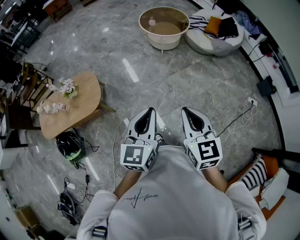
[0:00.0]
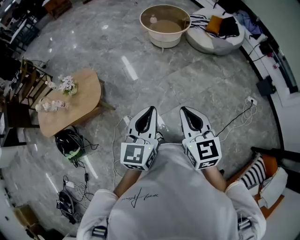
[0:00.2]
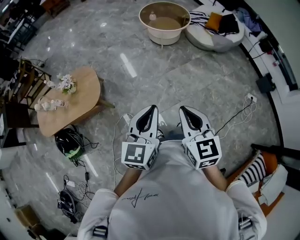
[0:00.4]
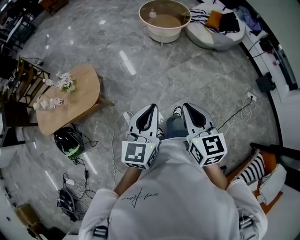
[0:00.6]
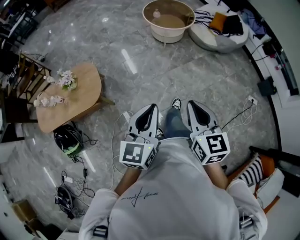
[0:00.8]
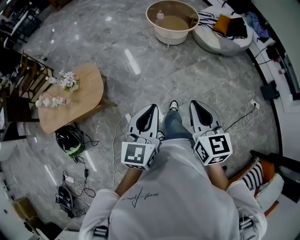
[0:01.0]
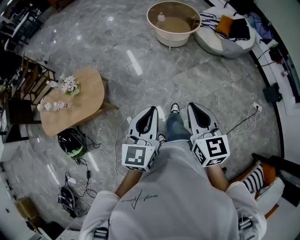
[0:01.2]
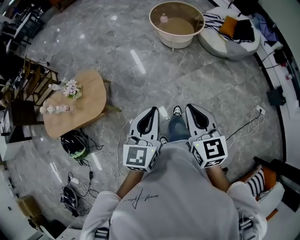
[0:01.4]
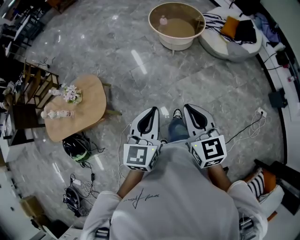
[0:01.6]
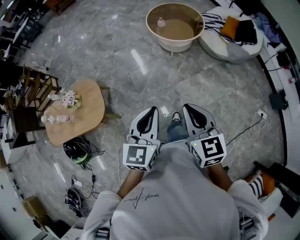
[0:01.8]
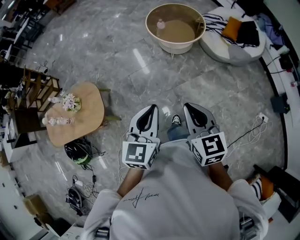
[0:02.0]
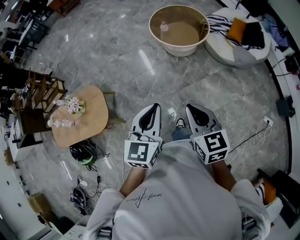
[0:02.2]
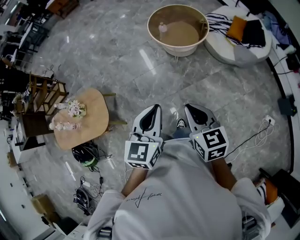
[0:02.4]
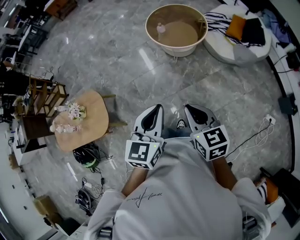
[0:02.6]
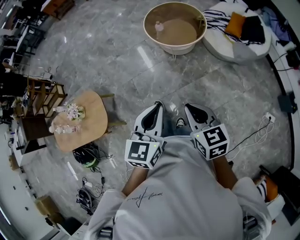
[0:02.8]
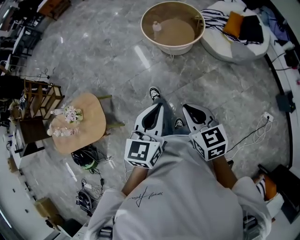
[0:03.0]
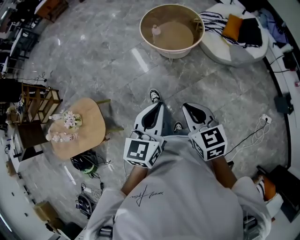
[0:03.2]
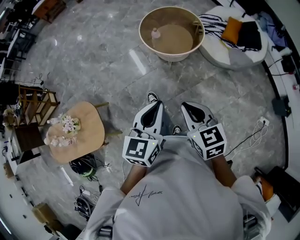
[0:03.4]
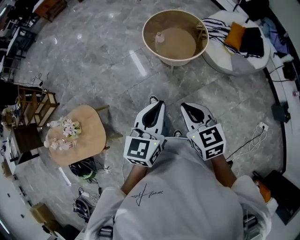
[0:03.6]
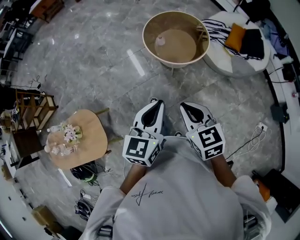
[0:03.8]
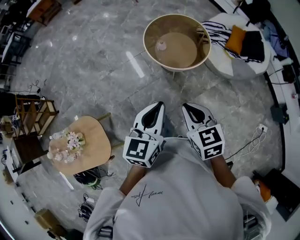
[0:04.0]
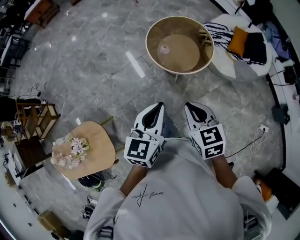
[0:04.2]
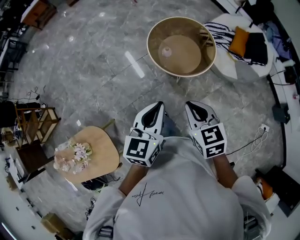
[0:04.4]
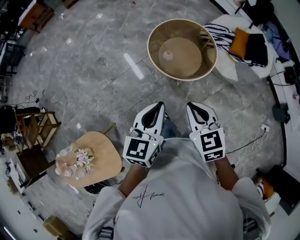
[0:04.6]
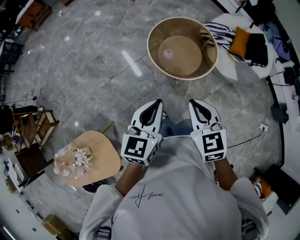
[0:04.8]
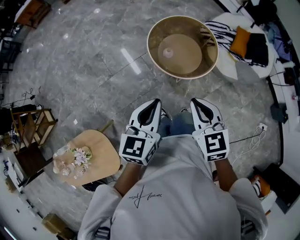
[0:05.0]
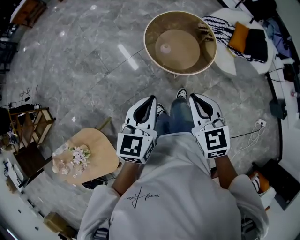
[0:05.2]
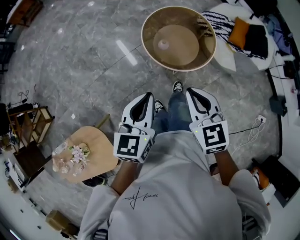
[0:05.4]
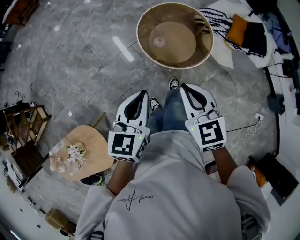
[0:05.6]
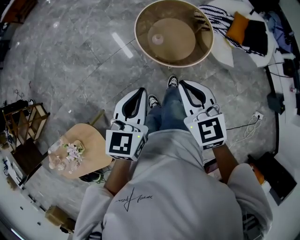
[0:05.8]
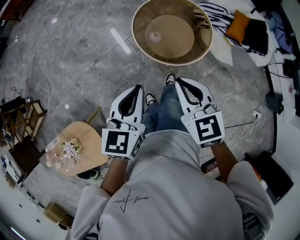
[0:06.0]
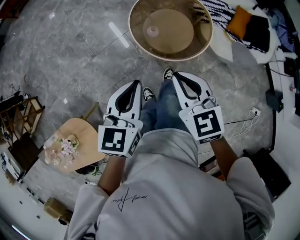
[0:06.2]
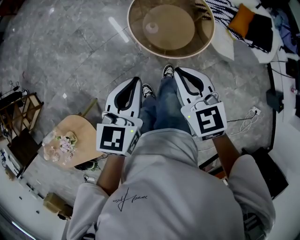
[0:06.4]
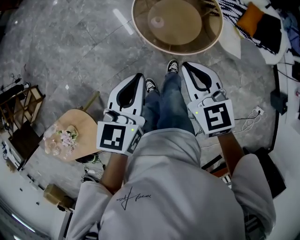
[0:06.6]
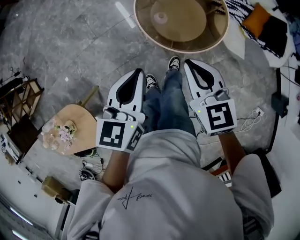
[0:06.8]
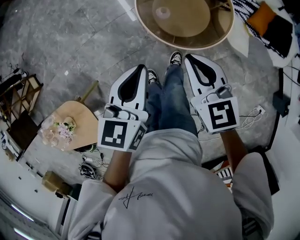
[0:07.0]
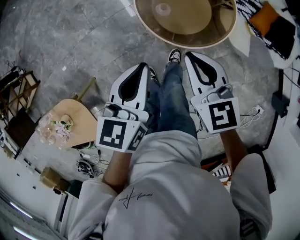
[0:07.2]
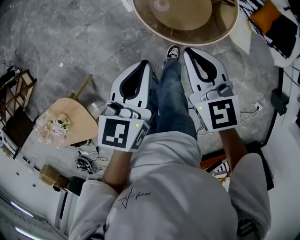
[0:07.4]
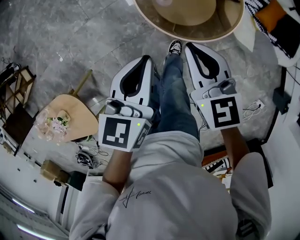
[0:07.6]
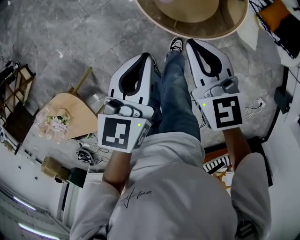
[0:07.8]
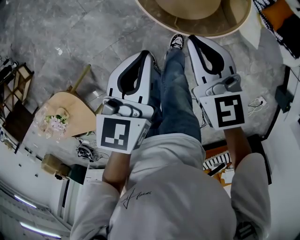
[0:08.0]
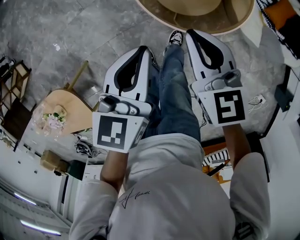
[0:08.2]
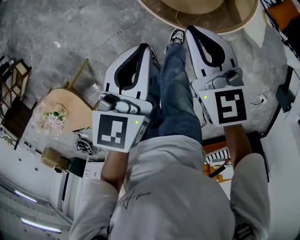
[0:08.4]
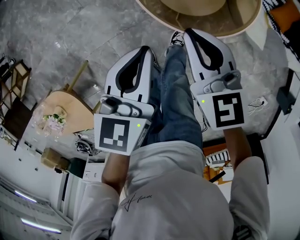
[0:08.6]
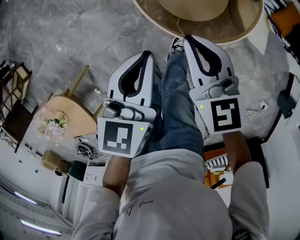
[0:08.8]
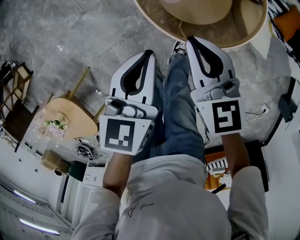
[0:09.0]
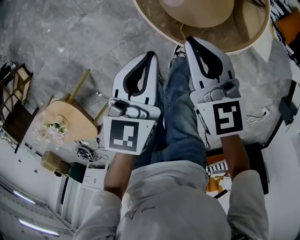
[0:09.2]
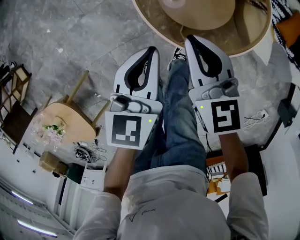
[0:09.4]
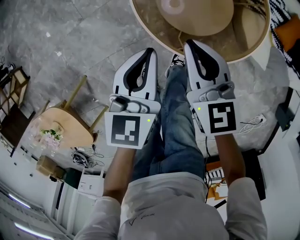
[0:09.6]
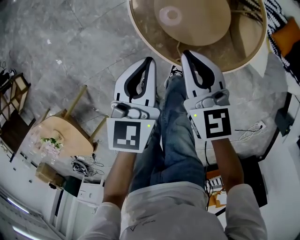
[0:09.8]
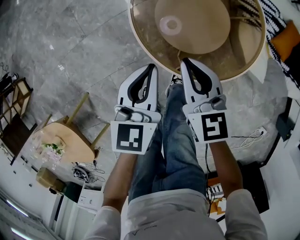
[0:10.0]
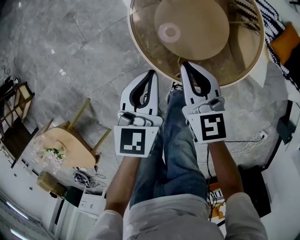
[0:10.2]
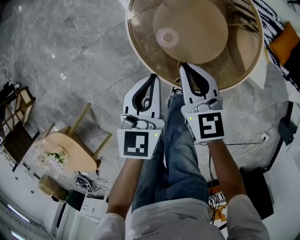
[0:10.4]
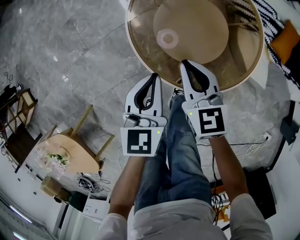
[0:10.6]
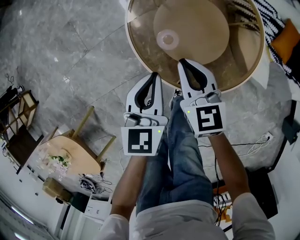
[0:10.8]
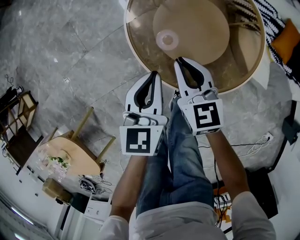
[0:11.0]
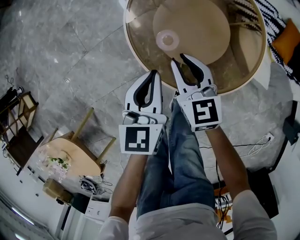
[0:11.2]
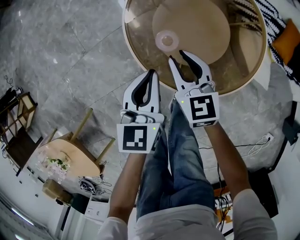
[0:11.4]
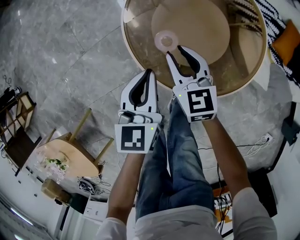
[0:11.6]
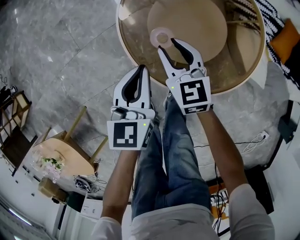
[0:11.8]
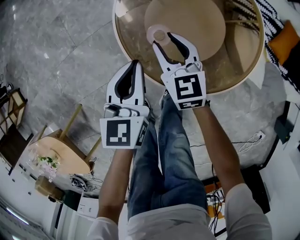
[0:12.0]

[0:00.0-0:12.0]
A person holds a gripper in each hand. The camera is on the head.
0:00.0 to 0:01.6: Both grippers move forward, some 20 cm.
0:01.6 to 0:03.0: Both grippers move forward and to the right, some 20 cm.
0:03.0 to 0:04.4: Both grippers move forward, about 30 cm.
0:04.4 to 0:06.0: Both grippers travel together forward, approximately 10 cm.
0:06.0 to 0:07.6: Both grippers travel together downward and forward, roughly 15 cm.
0:07.6 to 0:09.0: The left gripper travels downward by approximately 10 cm, while the right gripper heads downward and forward, covering roughly 10 cm.
0:09.0 to 0:10.4: The grippers both shift downward by roughly 10 cm.
0:10.4 to 0:12.0: The left gripper changes place by about 5 cm; the right gripper moves downward and forward, some 10 cm, and opens its fingers.

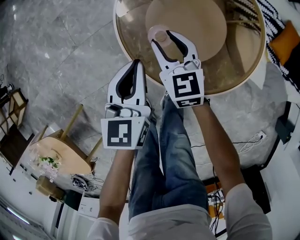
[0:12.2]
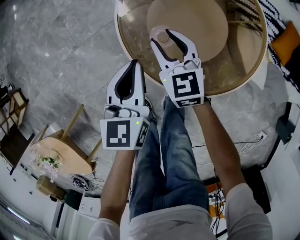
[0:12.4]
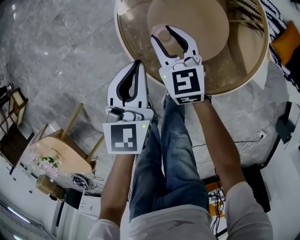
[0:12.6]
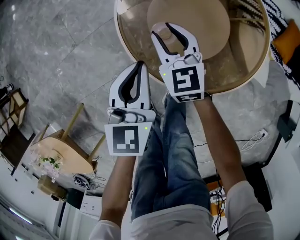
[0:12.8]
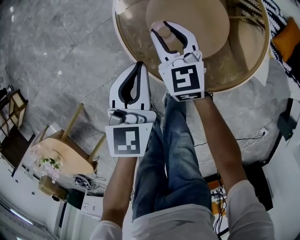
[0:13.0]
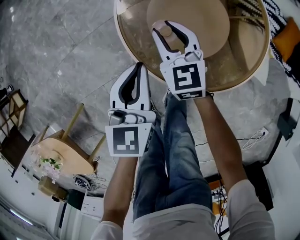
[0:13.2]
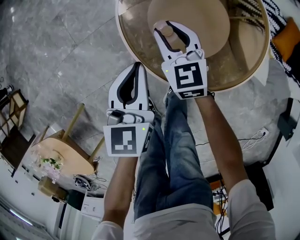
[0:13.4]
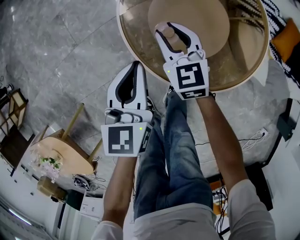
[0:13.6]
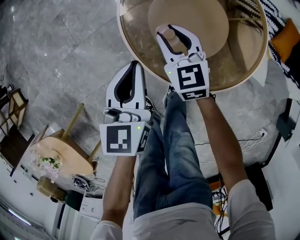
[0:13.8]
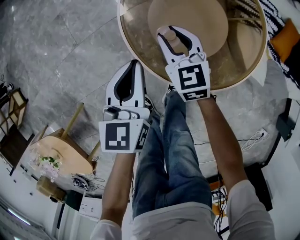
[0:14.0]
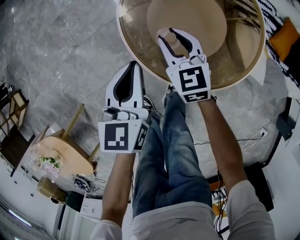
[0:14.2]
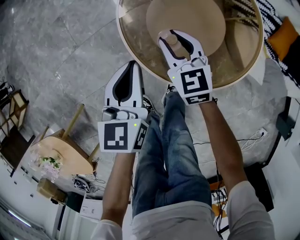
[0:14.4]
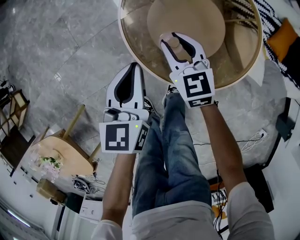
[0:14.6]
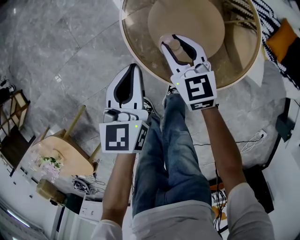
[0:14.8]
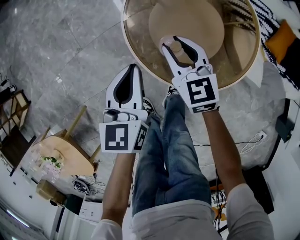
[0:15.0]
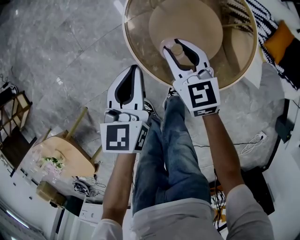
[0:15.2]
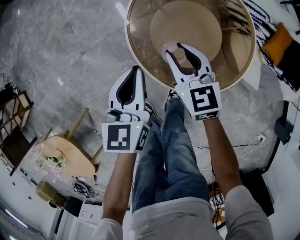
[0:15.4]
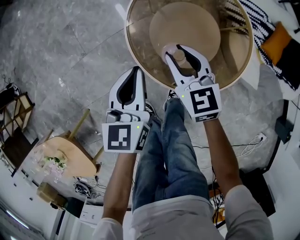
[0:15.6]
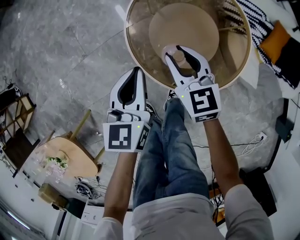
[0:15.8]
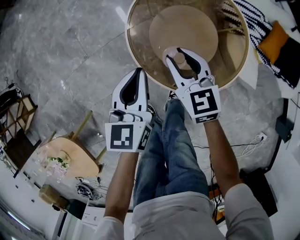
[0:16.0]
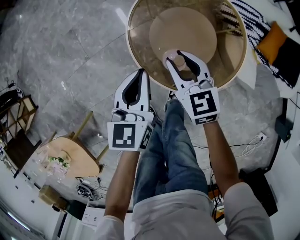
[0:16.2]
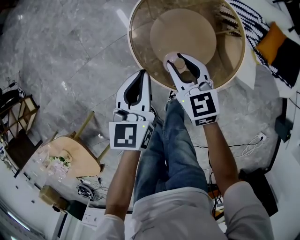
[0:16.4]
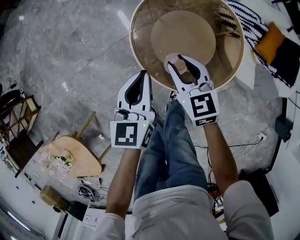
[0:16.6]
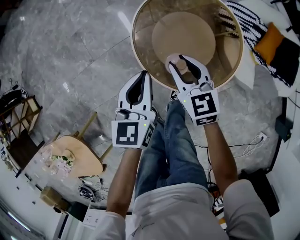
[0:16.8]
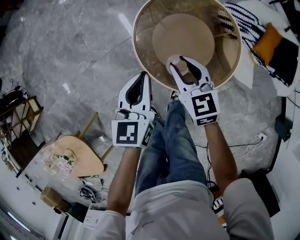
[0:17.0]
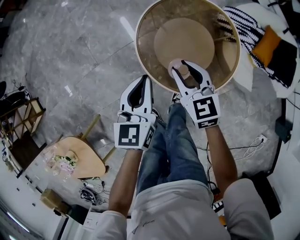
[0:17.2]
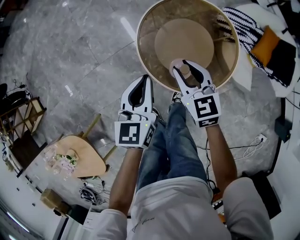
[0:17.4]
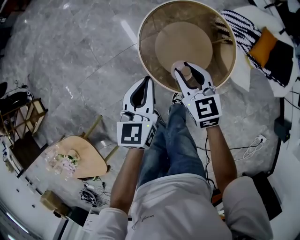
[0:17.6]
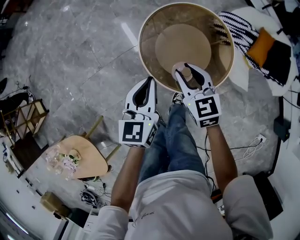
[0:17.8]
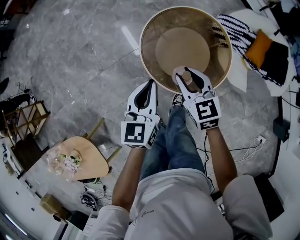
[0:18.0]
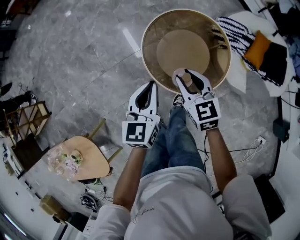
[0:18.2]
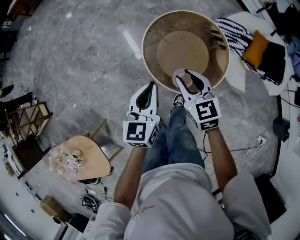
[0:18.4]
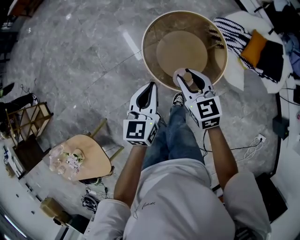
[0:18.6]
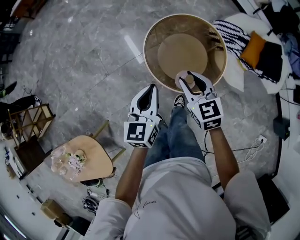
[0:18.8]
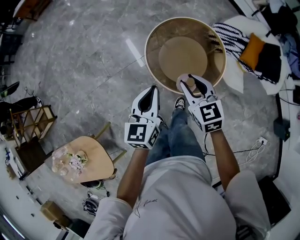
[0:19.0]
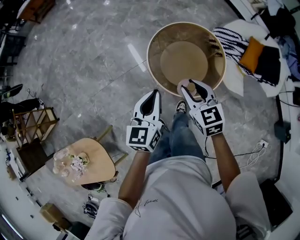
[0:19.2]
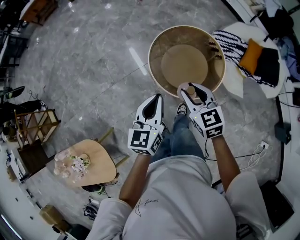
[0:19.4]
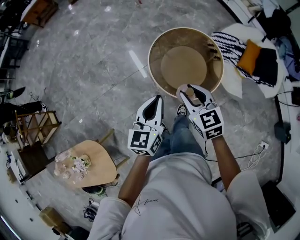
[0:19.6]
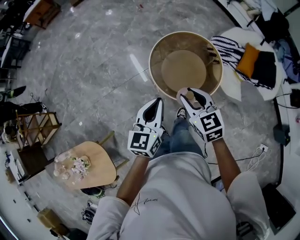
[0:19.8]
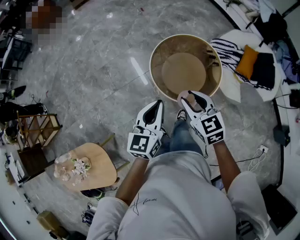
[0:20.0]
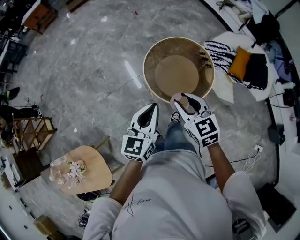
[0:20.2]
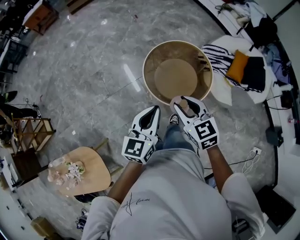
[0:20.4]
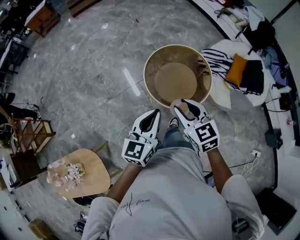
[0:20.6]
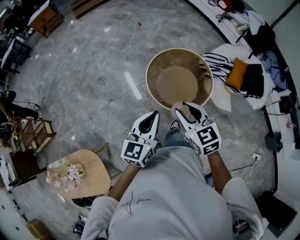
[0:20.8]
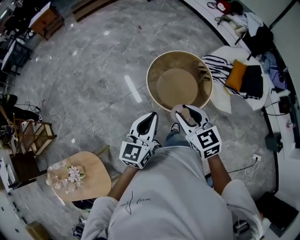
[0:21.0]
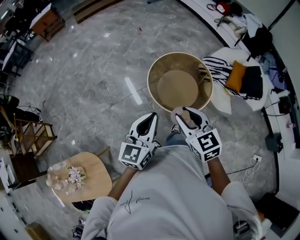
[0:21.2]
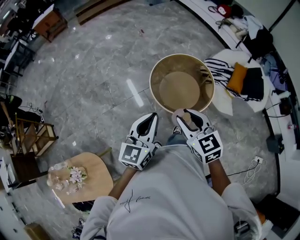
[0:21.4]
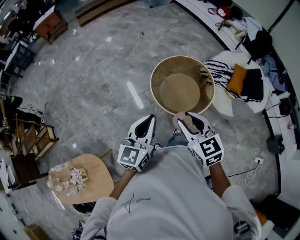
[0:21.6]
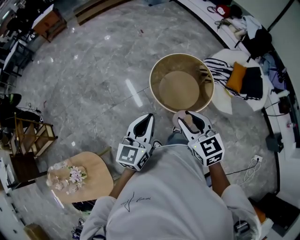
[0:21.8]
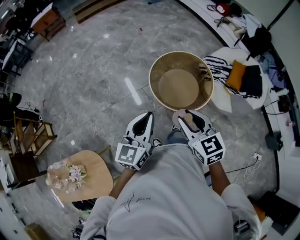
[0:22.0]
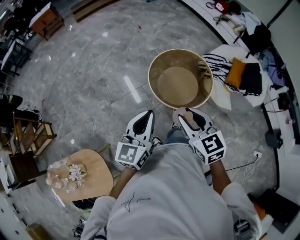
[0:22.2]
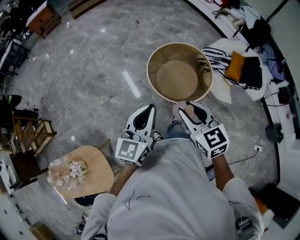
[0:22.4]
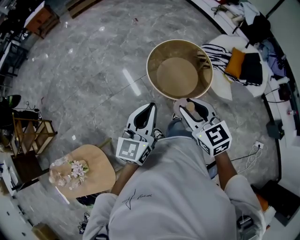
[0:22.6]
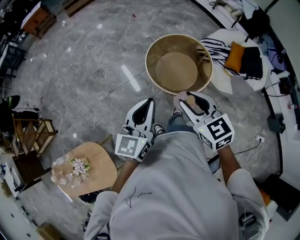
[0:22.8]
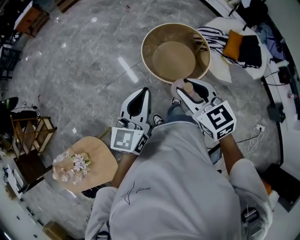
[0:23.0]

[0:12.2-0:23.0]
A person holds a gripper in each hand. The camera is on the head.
0:12.2 to 0:13.8: The grippers stay close to where they were, moving slightly.
0:13.8 to 0:15.2: The right gripper moves upward, about 10 cm.
0:15.2 to 0:16.8: The grippers both shift upward by some 10 cm.
0:16.8 to 0:18.4: Both grippers travel together upward, approximately 10 cm.
0:18.4 to 0:20.0: The grippers both shift upward and backward by approximately 15 cm.
0:20.0 to 0:21.4: The left gripper travels upward and backward by roughly 10 cm. Meanwhile the right gripper is displaced backward and upward by approximately 10 cm.
0:21.4 to 0:23.0: There are only small adjustments of the grippers.

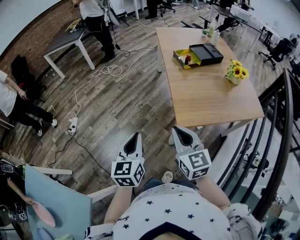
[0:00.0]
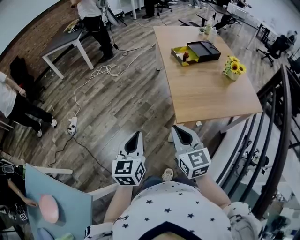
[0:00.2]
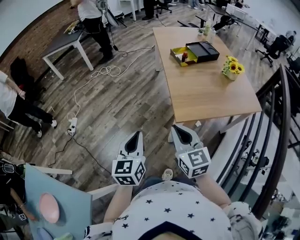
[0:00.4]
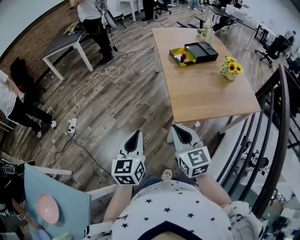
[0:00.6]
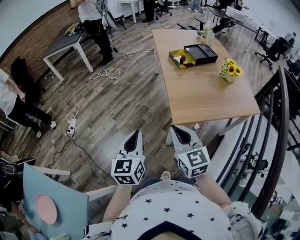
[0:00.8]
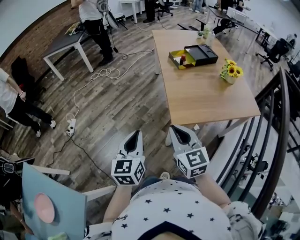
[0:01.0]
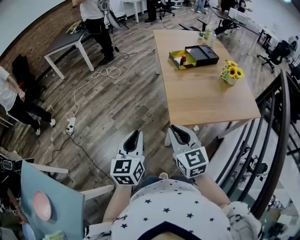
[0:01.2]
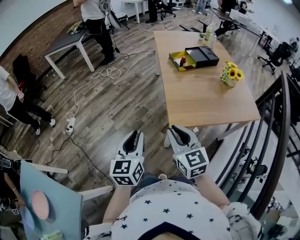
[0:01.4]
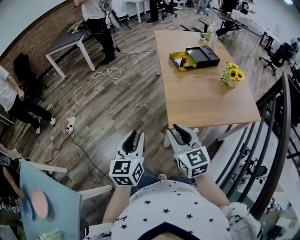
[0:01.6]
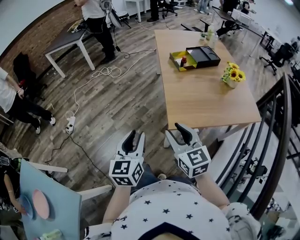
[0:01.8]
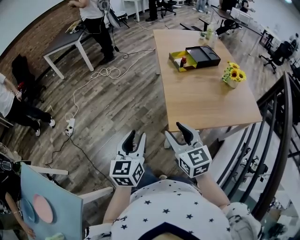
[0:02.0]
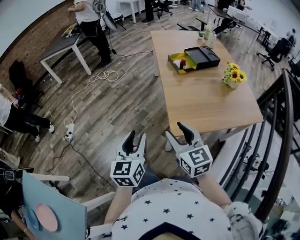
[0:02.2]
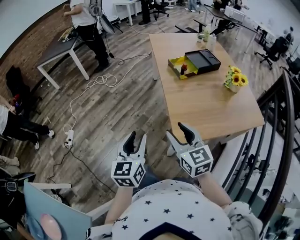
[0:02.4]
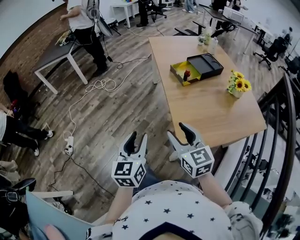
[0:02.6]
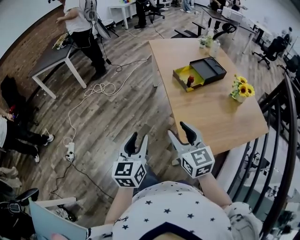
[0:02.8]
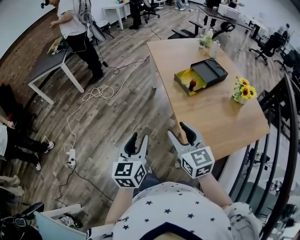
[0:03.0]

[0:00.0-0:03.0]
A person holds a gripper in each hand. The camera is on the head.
0:00.0 to 0:01.6: The left gripper is displaced to the right by approximately 5 cm, and opens up.
0:01.6 to 0:03.0: The grippers both shift forward by some 30 cm. The right gripper opens.
